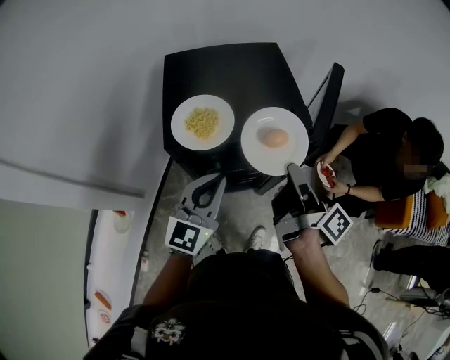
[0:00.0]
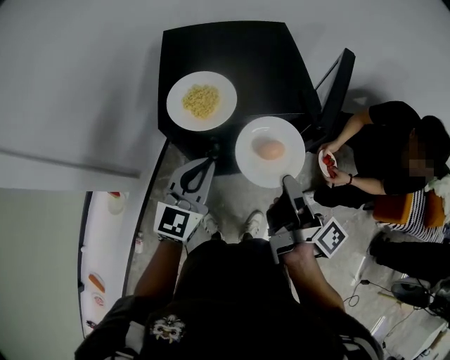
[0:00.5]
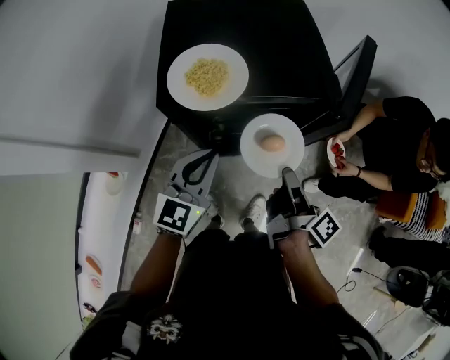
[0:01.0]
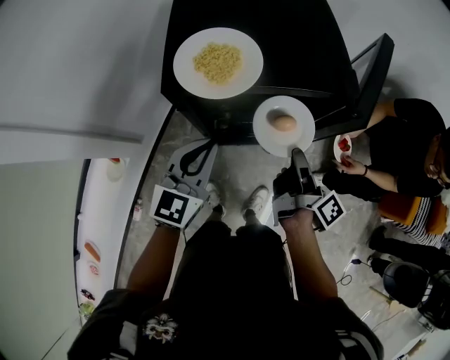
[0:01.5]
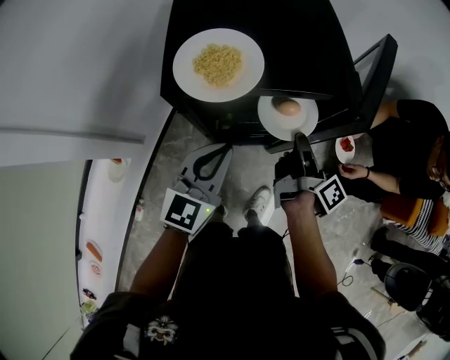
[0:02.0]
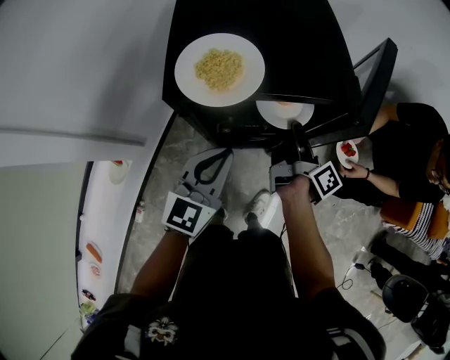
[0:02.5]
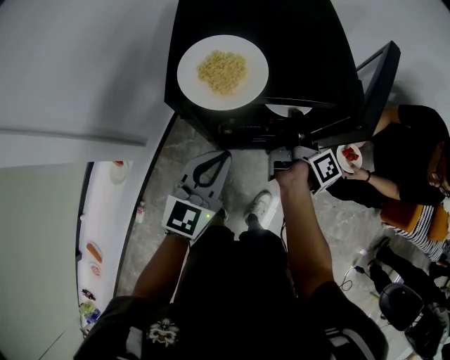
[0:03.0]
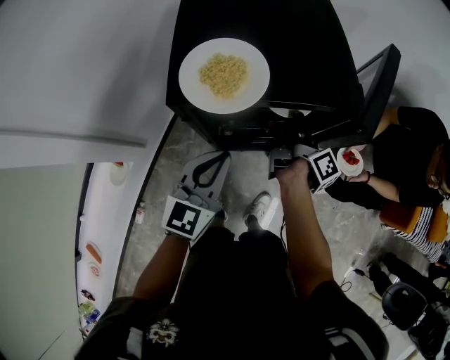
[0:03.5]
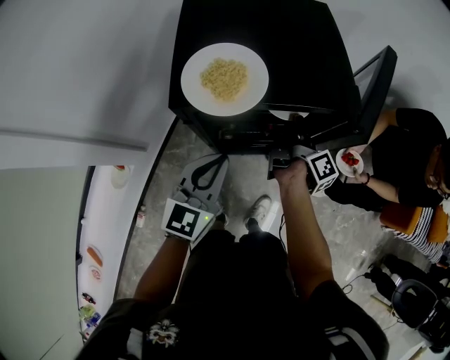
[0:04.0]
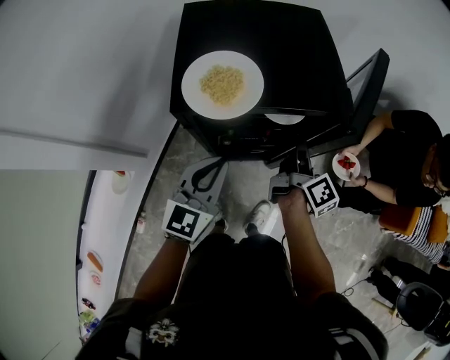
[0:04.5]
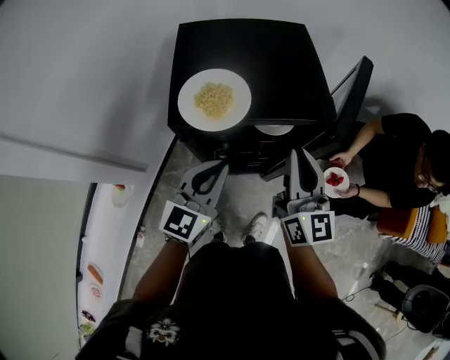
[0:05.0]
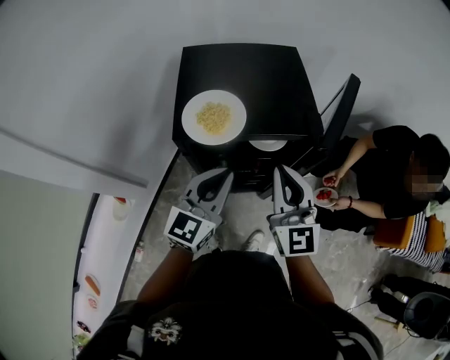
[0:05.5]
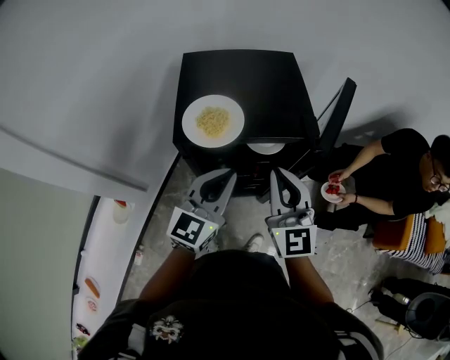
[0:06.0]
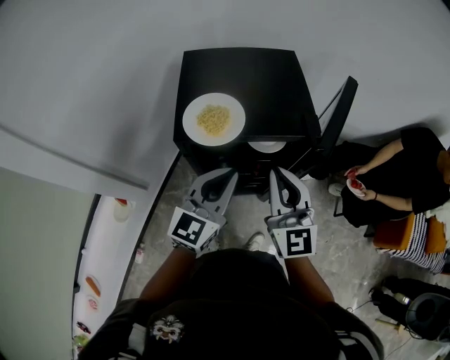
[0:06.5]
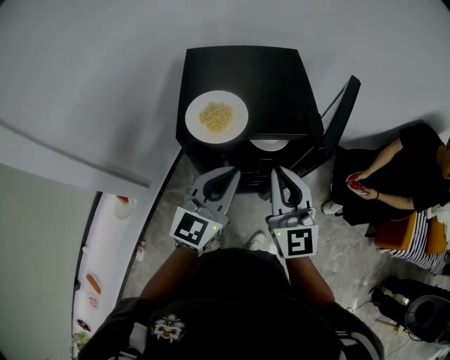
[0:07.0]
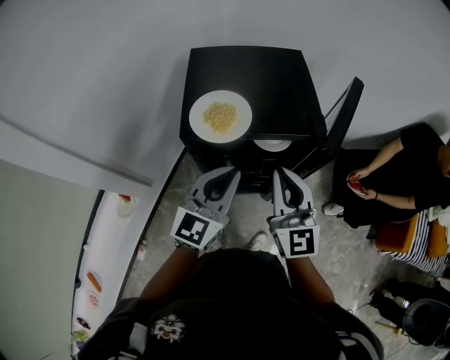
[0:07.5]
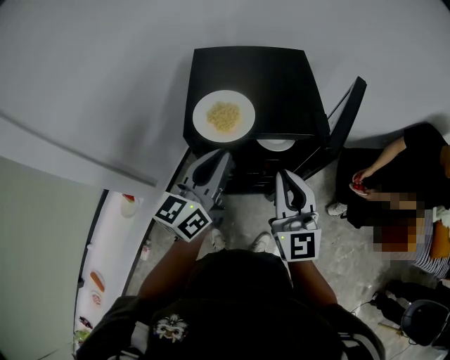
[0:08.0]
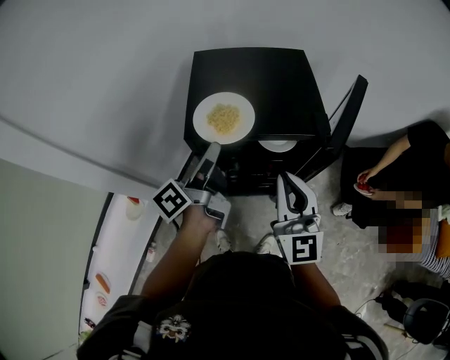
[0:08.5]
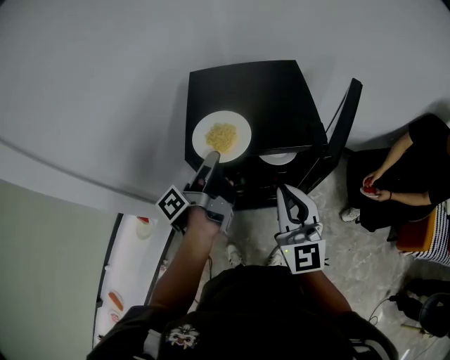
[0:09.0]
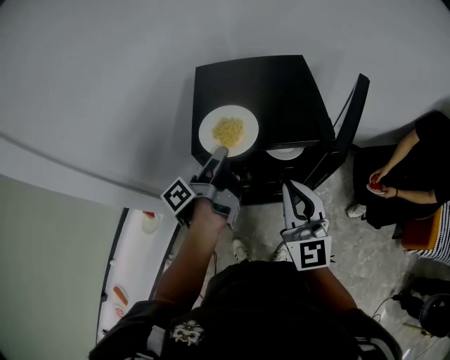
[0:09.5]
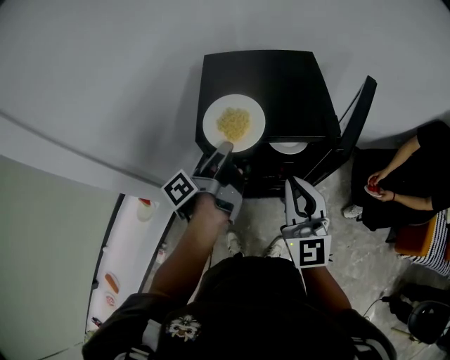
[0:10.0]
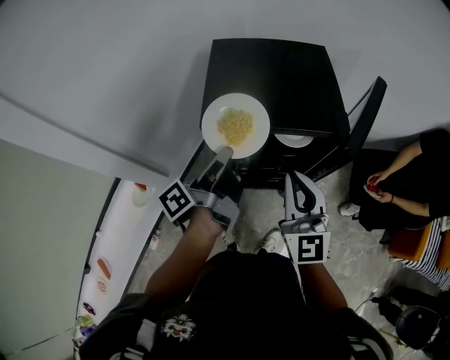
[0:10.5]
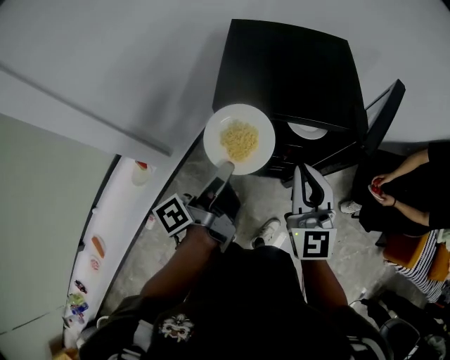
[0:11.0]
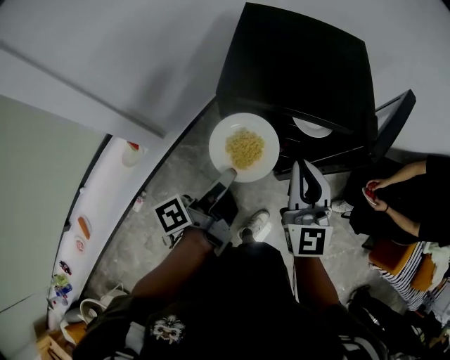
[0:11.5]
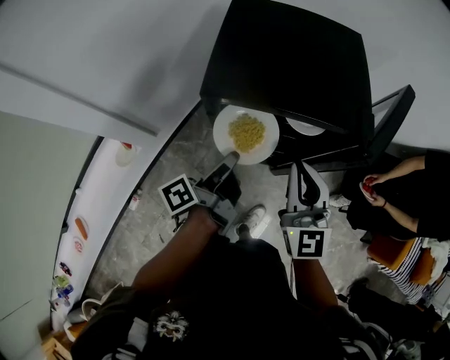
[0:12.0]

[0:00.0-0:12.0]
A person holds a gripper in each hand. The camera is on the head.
0:00.0 to 0:02.0: The right gripper goes roughly 15 cm downward, while the left gripper heads downward, covering some 10 cm.
0:02.0 to 0:04.0: The right gripper travels forward by approximately 10 cm.
0:04.0 to 0:06.0: The left gripper shifts some 10 cm upward; the right gripper moves upward and backward, some 25 cm, and twists approximately 90 degrees counterclockwise, seen from behind.
0:06.0 to 0:08.0: The left gripper shifts by roughly 5 cm, and turns by approximately 20 degrees.
0:08.0 to 0:10.0: The left gripper travels forward by some 5 cm, twists approximately 70 degrees counterclockwise, seen from behind, and opens and closes again.
0:10.0 to 0:12.0: The right gripper goes approximately 5 cm downward. The left gripper travels downward and backward by approximately 15 cm.

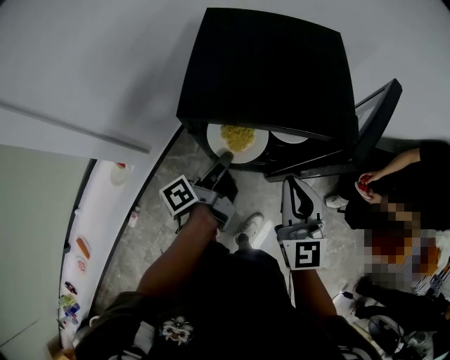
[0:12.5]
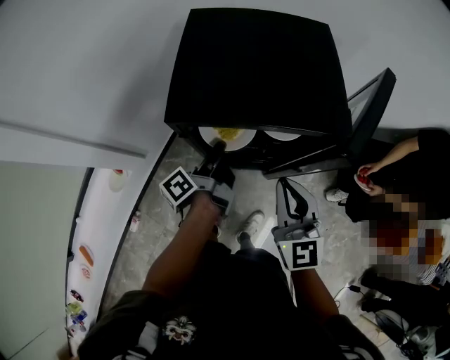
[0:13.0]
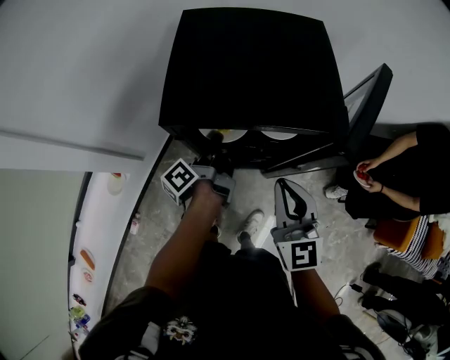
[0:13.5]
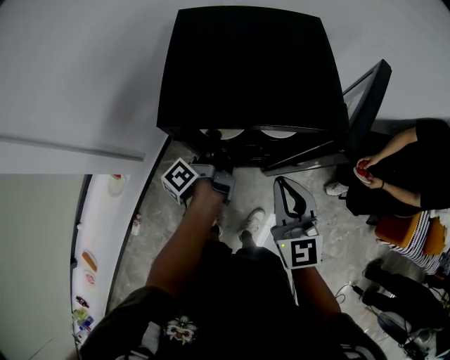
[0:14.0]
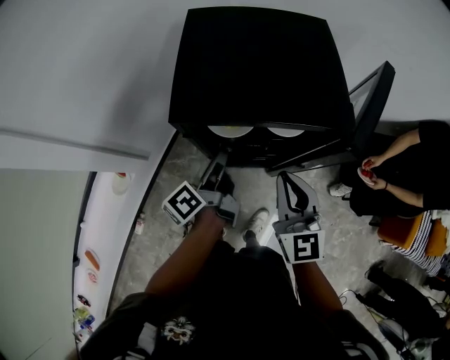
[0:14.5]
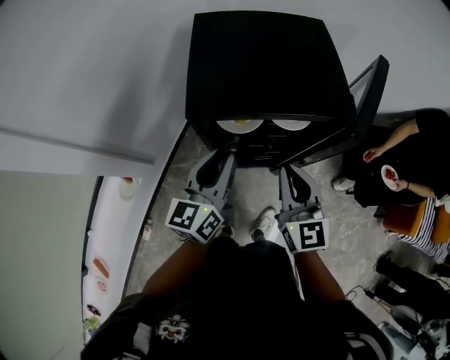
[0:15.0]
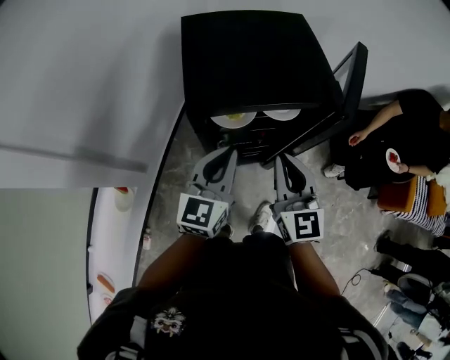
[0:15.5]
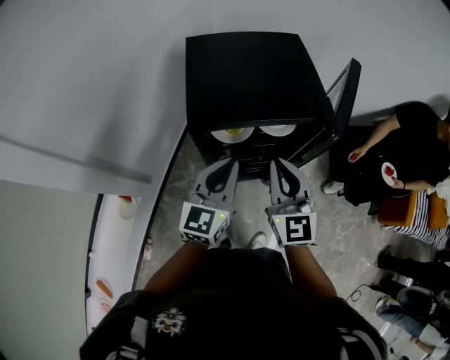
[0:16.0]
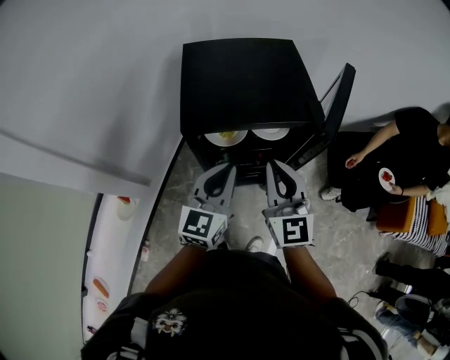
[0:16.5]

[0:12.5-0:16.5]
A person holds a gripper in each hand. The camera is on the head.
0:14.5 to 0:16.5: The right gripper is displaced upward by approximately 5 cm, while the left gripper heads upward and backward, covering about 15 cm, twists some 70 degrees clockwise, seen from behind, and closes its fingers.

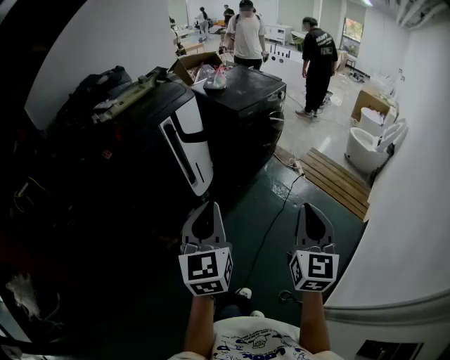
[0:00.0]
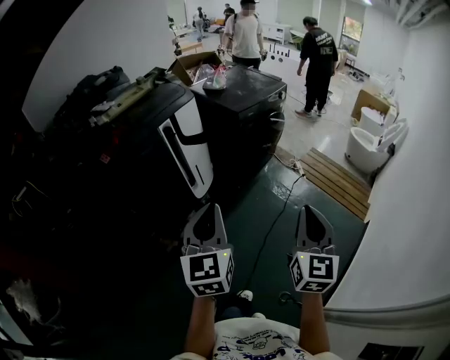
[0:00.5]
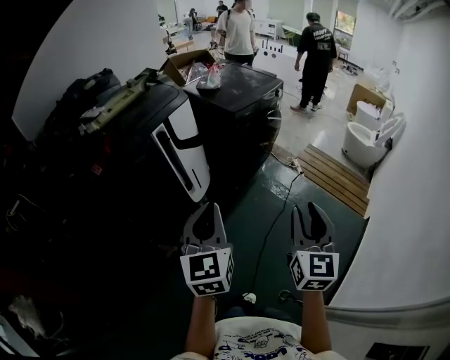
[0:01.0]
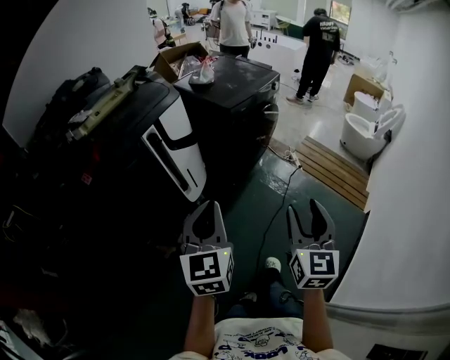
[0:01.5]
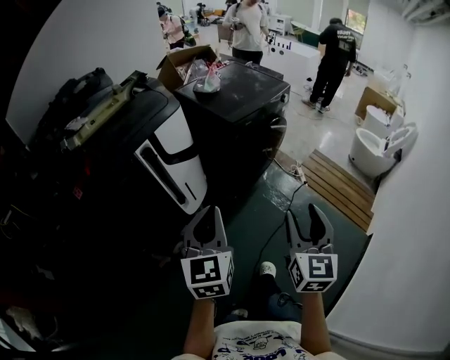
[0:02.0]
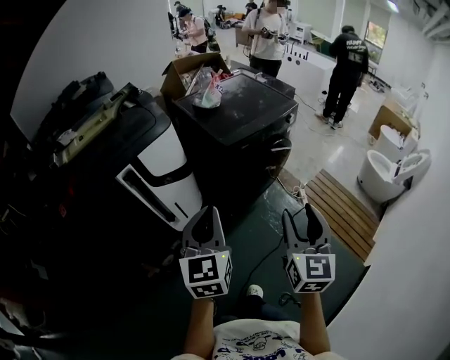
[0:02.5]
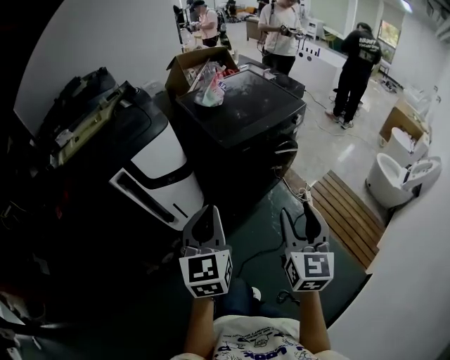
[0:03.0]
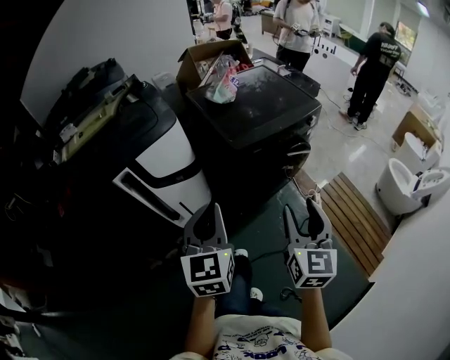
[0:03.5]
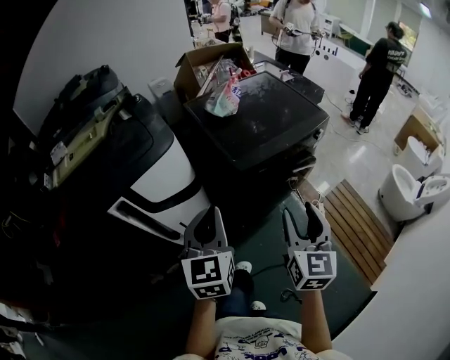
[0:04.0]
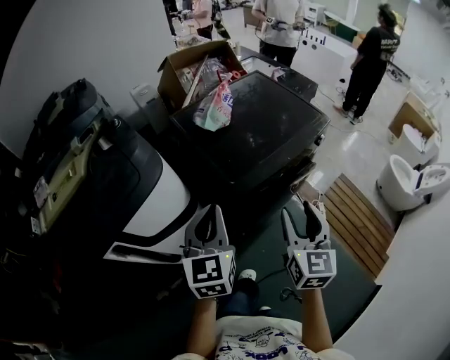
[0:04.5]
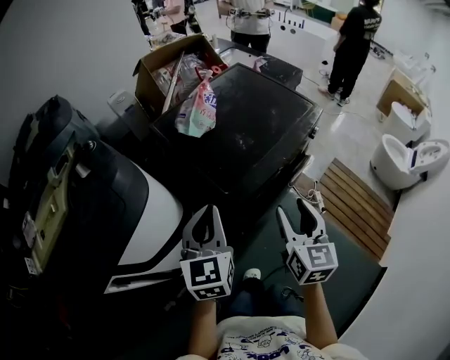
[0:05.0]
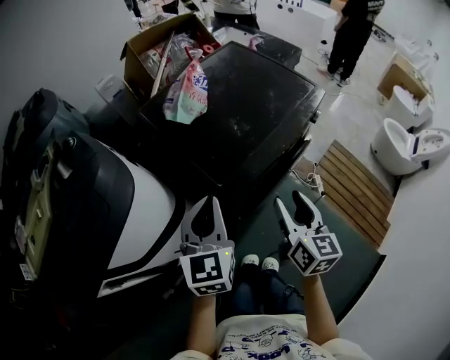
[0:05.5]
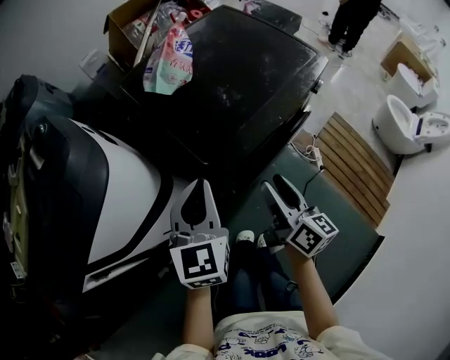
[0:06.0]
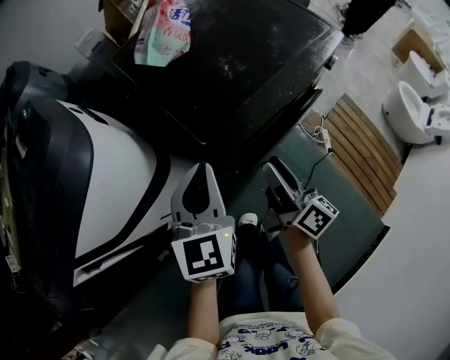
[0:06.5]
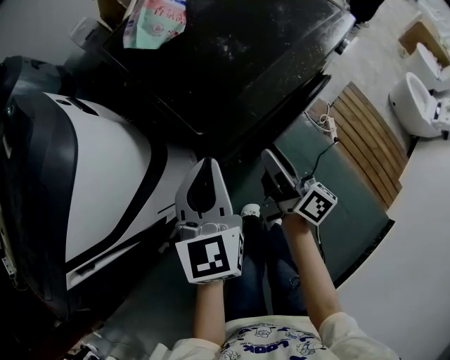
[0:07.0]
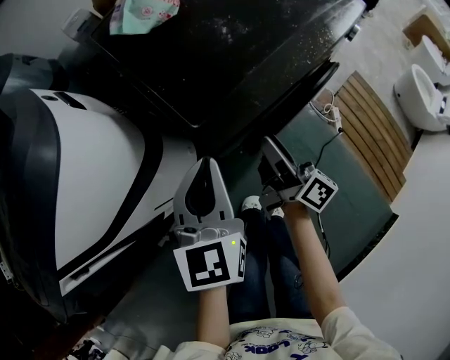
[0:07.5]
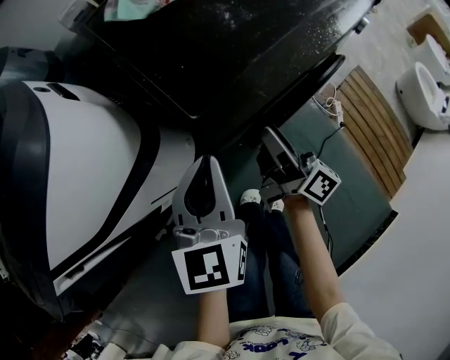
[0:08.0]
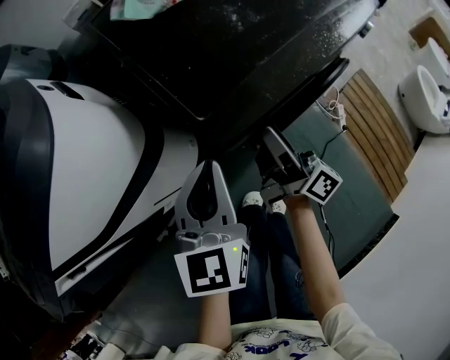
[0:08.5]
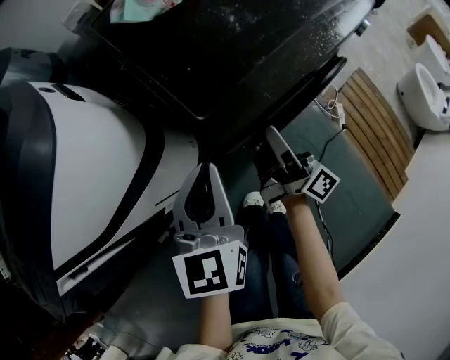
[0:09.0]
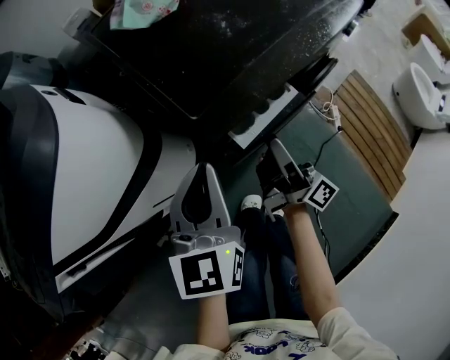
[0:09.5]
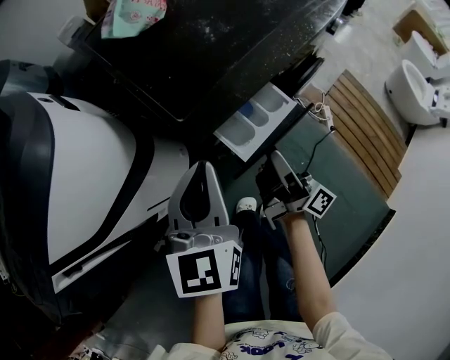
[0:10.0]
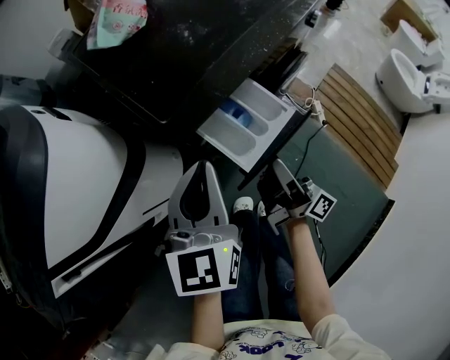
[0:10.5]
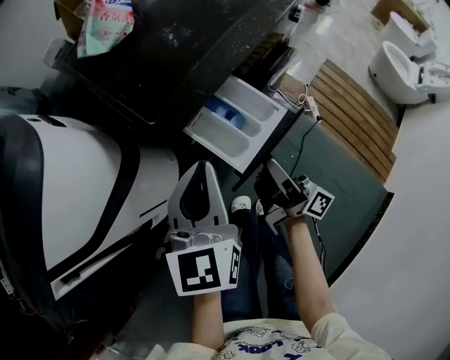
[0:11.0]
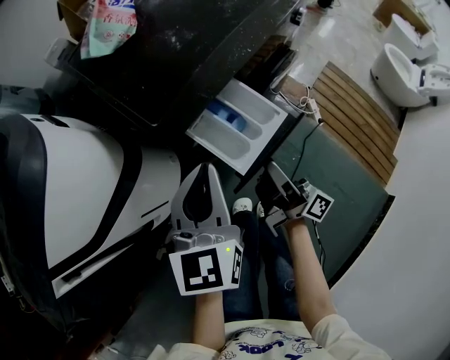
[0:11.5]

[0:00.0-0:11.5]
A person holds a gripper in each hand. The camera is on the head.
0:00.0 to 0:02.0: The two grippers go approximately 25 cm forward. The right gripper opens.
0:02.0 to 0:04.0: The grippers both shift forward by roughly 40 cm.
0:04.0 to 0:06.0: Both grippers travel together forward and downward, approximately 30 cm. The right gripper rotates around the line of its fingers by some 50 degrees, clockwise from behind.
0:06.0 to 0:07.5: The right gripper goes approximately 15 cm downward and forward, and rotates roughly 30 degrees. Meanwhile the left gripper goes roughly 10 cm downward.
0:07.5 to 0:09.5: The grippers move only a little.
0:09.5 to 0:11.5: The left gripper goes roughly 10 cm to the right. Meanwhile the right gripper shifts roughly 10 cm backward and to the right.
